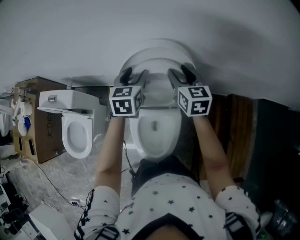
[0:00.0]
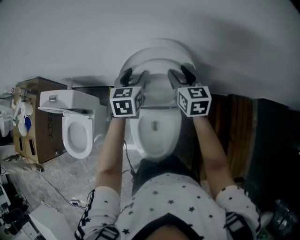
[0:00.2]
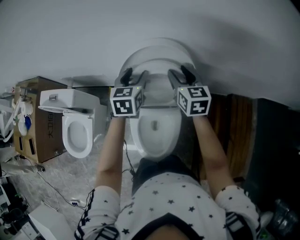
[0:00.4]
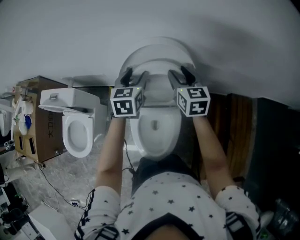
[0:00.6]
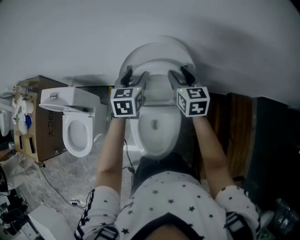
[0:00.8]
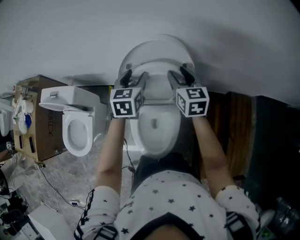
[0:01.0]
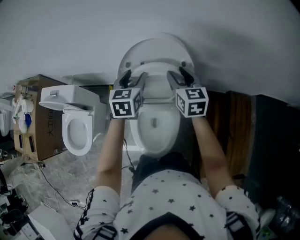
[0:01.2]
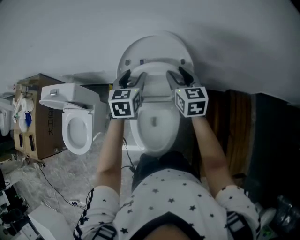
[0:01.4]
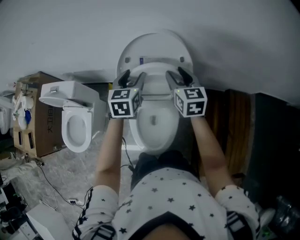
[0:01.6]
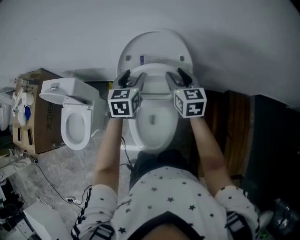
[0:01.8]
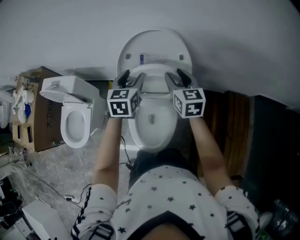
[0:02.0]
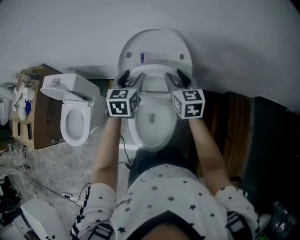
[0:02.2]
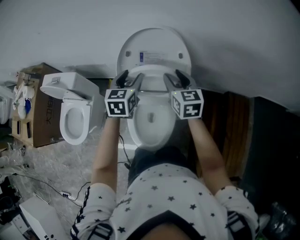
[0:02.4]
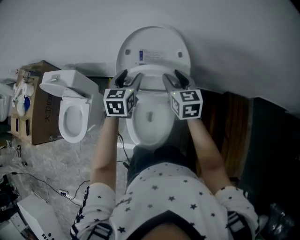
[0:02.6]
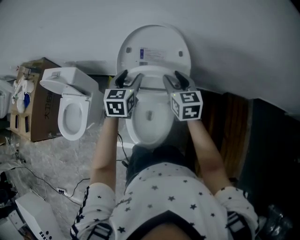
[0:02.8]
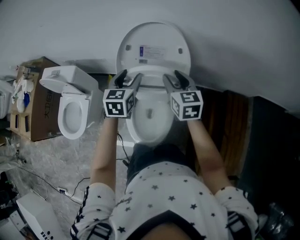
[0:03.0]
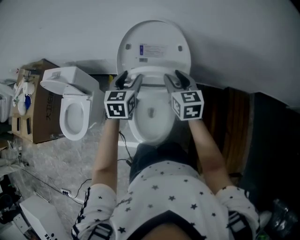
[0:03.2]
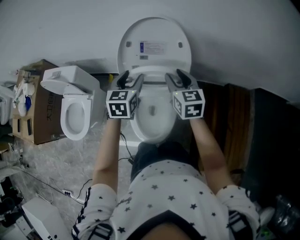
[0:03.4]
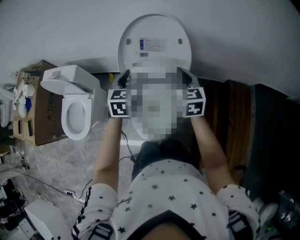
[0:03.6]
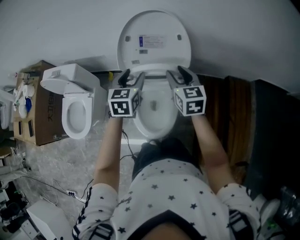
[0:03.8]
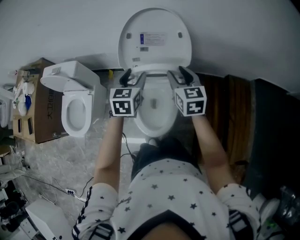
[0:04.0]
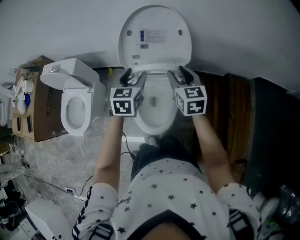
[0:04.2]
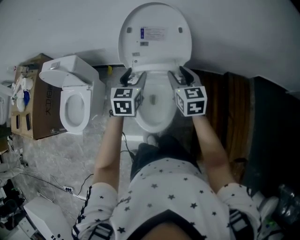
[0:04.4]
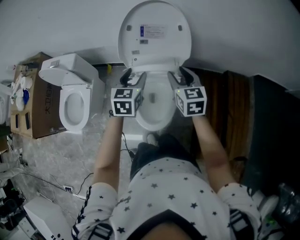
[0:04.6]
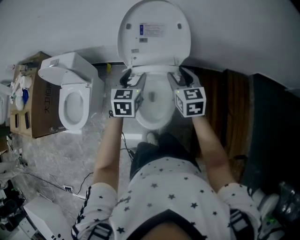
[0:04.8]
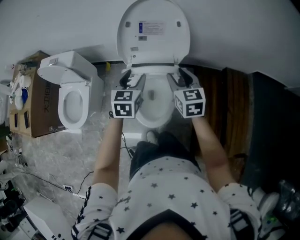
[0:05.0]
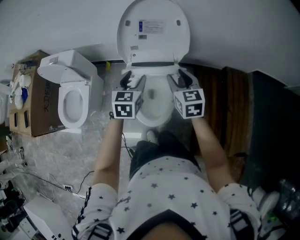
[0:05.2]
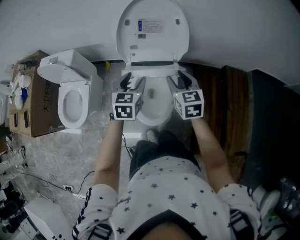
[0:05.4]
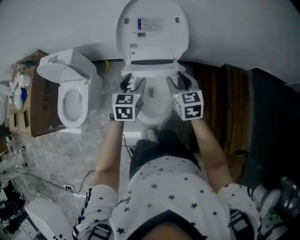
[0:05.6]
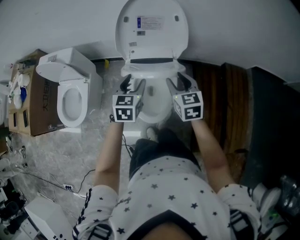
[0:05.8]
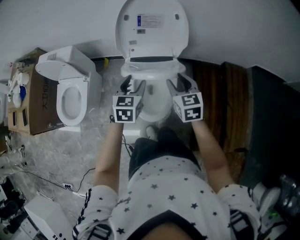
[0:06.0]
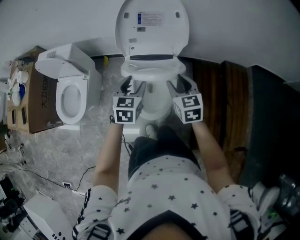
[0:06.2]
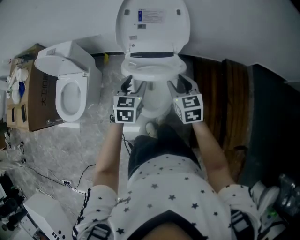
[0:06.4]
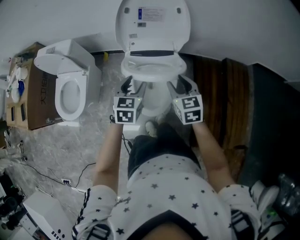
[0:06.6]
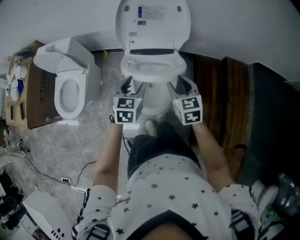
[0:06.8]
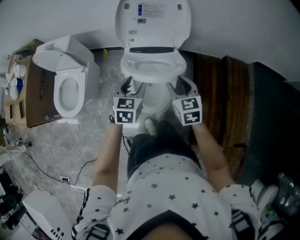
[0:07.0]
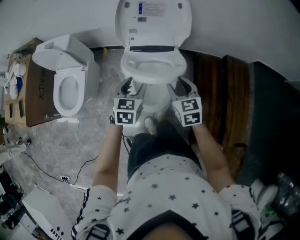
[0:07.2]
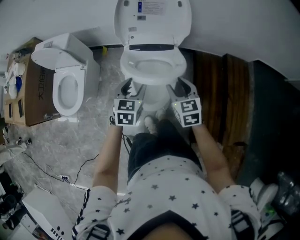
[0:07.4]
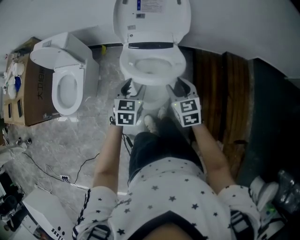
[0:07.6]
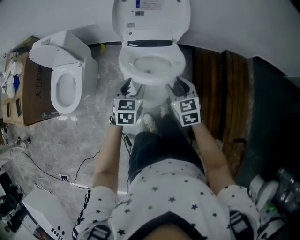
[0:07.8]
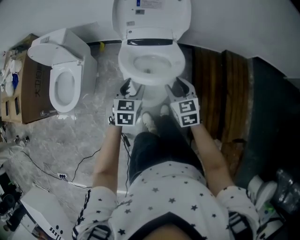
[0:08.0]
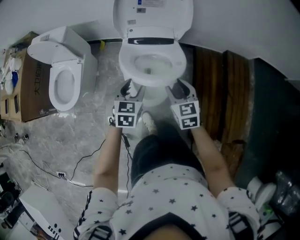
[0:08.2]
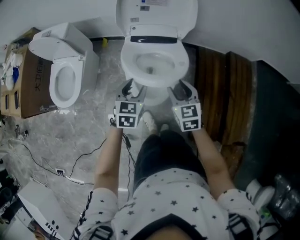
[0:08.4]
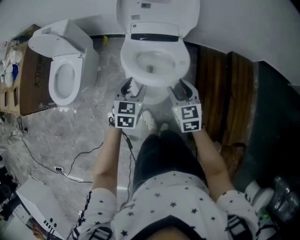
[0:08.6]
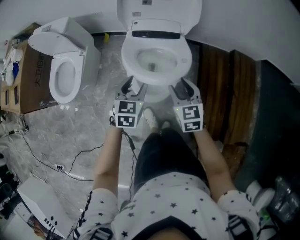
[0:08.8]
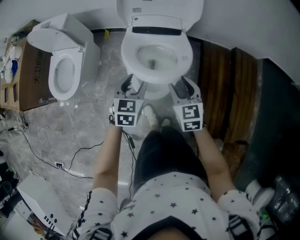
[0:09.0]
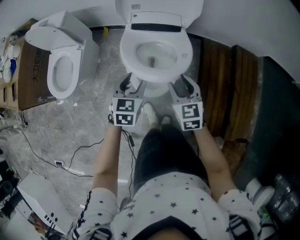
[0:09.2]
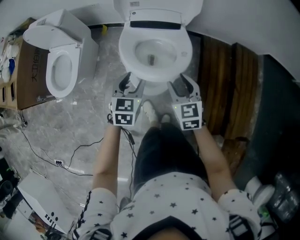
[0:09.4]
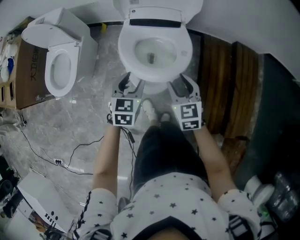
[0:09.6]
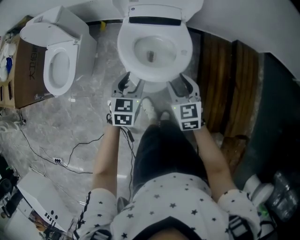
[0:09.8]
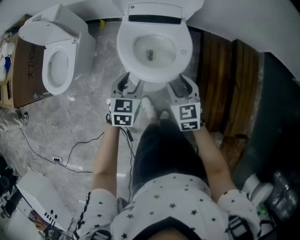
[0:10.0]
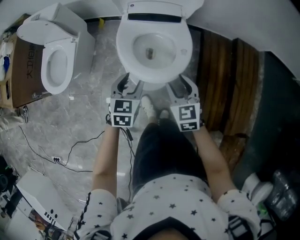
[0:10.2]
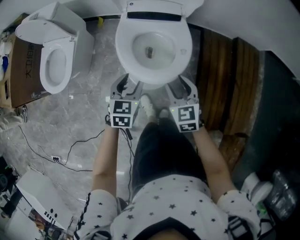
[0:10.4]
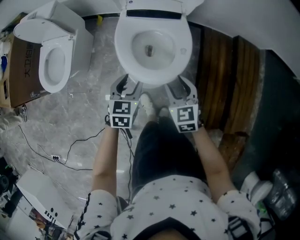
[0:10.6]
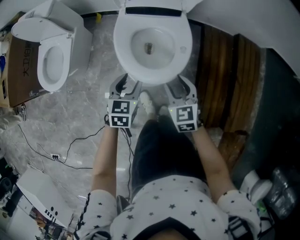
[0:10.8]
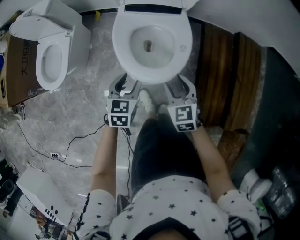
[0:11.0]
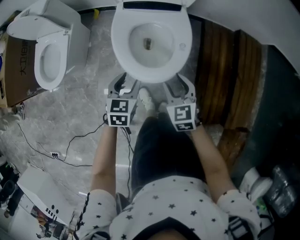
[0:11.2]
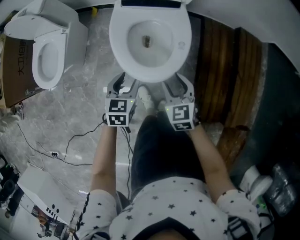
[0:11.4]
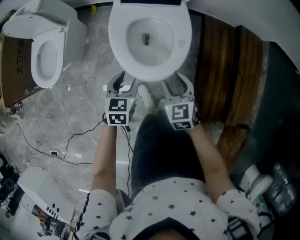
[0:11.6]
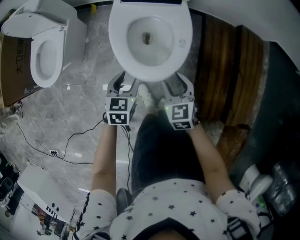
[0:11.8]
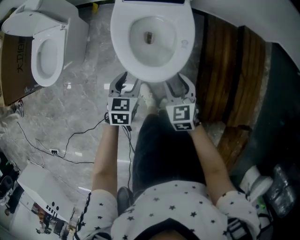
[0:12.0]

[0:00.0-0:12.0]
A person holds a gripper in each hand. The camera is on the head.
0:00.0 to 0:01.6: Both grippers travel together backward, about 10 cm.
0:01.6 to 0:03.0: The grippers both shift backward by approximately 5 cm.
0:03.0 to 0:04.4: Both grippers travel together backward, roughly 10 cm.
0:04.4 to 0:06.0: Both grippers travel together backward, approximately 10 cm.
0:06.0 to 0:07.6: Both grippers move backward and downward, roughly 10 cm.
0:07.6 to 0:09.0: The left gripper changes place by roughly 5 cm. The right gripper shifts by some 5 cm.
0:09.0 to 0:10.4: The grippers both shift downward by about 5 cm.
0:10.4 to 0:12.0: The two grippers go about 10 cm downward.

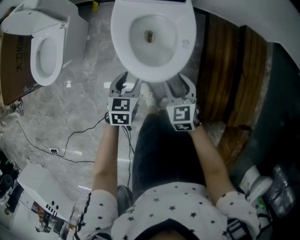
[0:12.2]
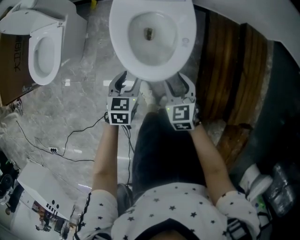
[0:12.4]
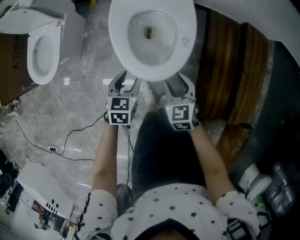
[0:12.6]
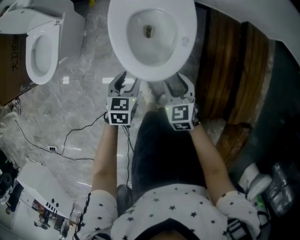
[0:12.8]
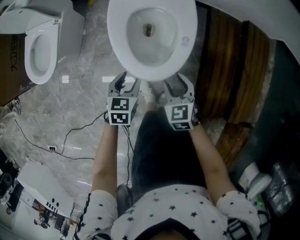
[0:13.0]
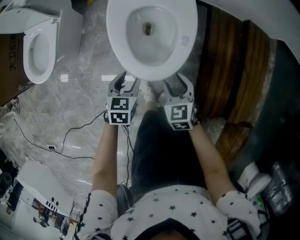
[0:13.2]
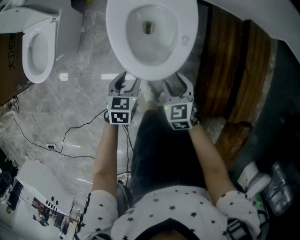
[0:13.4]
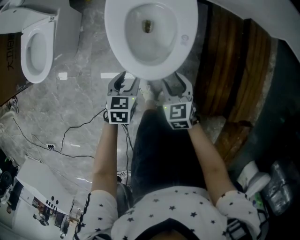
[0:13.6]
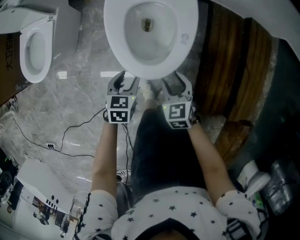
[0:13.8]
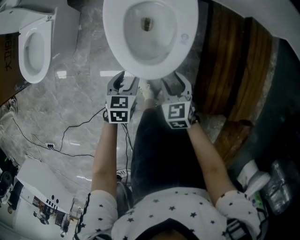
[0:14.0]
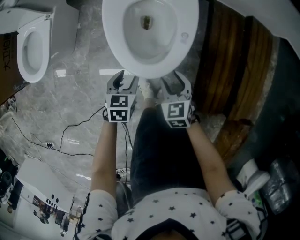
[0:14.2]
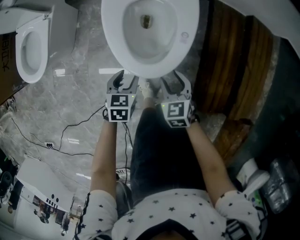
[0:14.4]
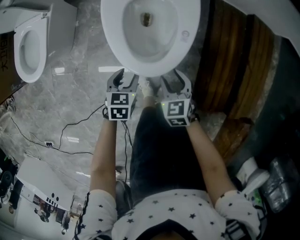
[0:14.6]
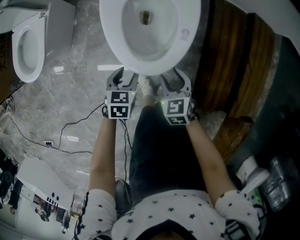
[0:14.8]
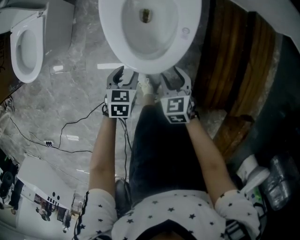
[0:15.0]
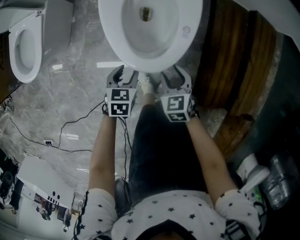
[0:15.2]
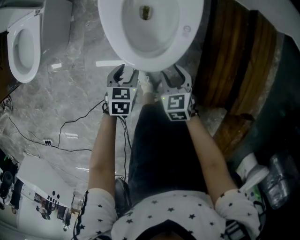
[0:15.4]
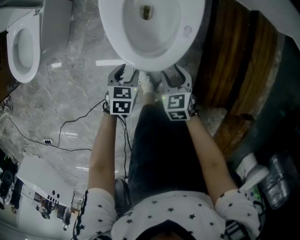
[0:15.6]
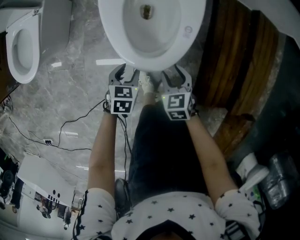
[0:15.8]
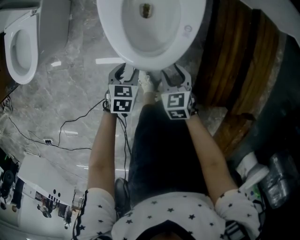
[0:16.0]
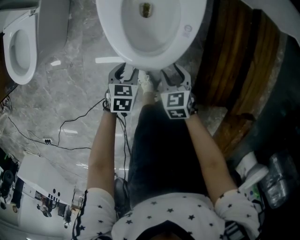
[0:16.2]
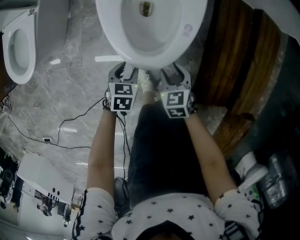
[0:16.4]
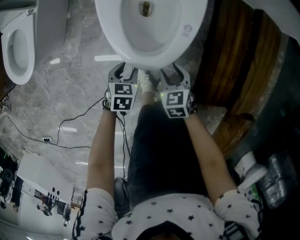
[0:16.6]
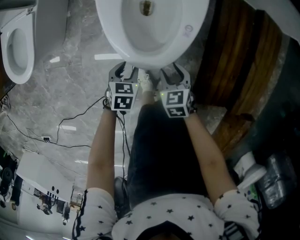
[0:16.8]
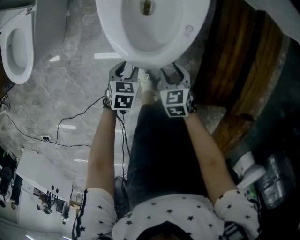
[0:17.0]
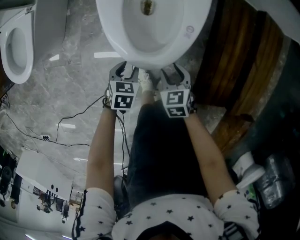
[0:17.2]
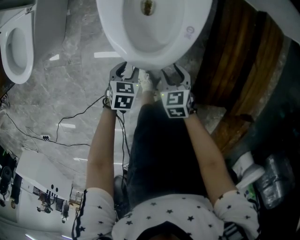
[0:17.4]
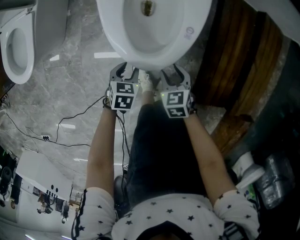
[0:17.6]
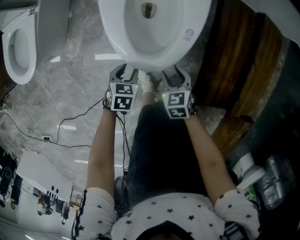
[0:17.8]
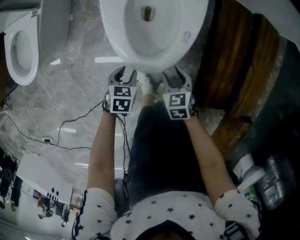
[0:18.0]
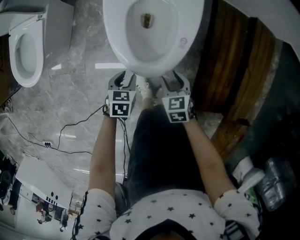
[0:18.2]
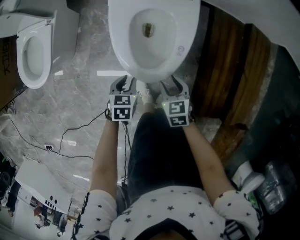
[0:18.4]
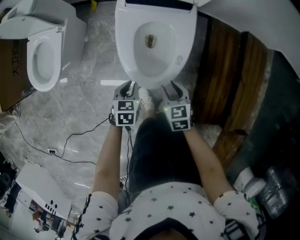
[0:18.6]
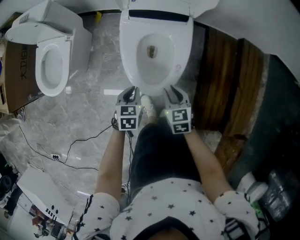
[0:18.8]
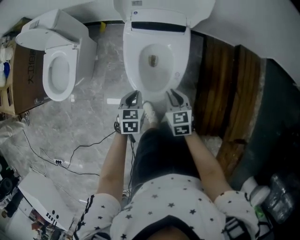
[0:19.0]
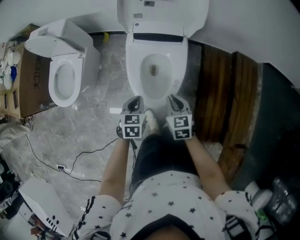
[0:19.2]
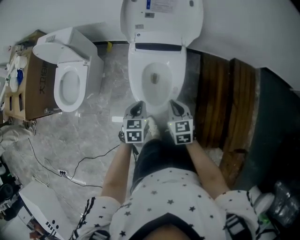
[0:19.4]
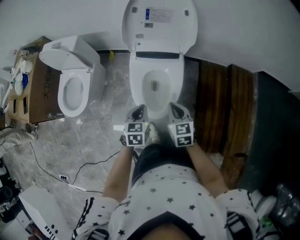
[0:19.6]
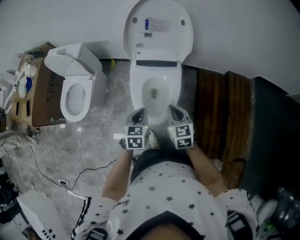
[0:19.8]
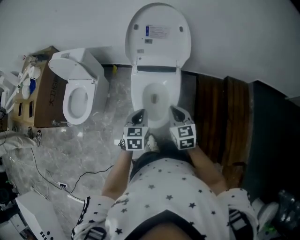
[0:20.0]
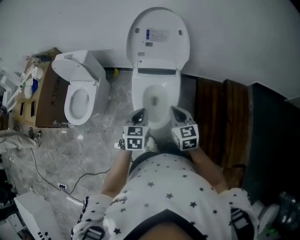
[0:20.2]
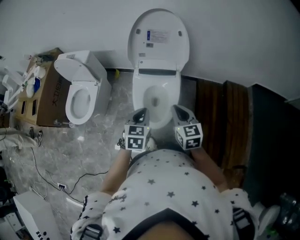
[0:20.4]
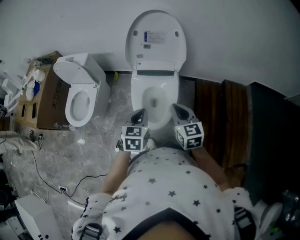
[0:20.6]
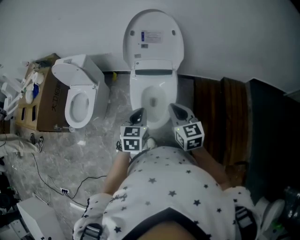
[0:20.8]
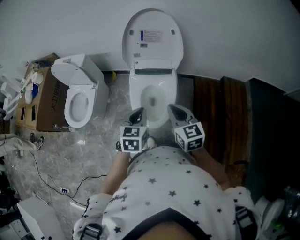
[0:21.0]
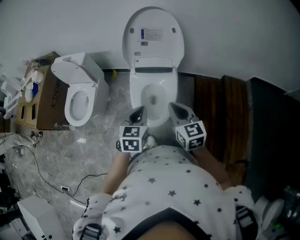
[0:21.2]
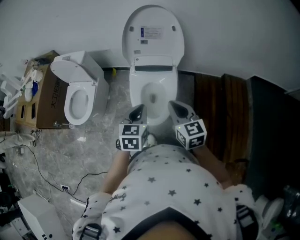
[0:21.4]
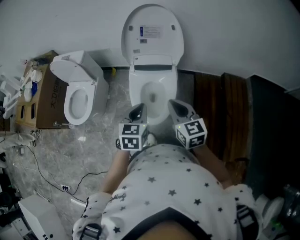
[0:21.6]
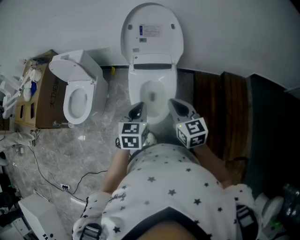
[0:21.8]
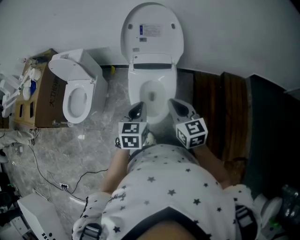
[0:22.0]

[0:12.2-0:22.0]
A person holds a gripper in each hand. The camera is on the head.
0:12.2 to 0:13.6: The grippers both shift downward by roughly 5 cm.
0:13.6 to 0:15.0: The grippers both shift downward by some 5 cm.
0:15.0 to 0:16.4: The grippers both shift downward by roughly 5 cm.
0:16.4 to 0:17.8: The grippers move only a little.
0:17.8 to 0:19.2: The grippers both shift upward by some 25 cm. The left gripper swivels about 20 degrees, and closes its fingers, while the right gripper closes up.
0:19.2 to 0:20.6: The two grippers go roughly 20 cm upward.
0:20.6 to 0:22.0: The grippers make only small movements.

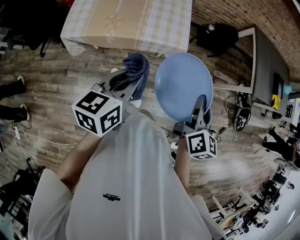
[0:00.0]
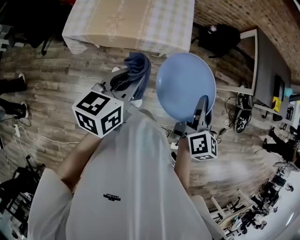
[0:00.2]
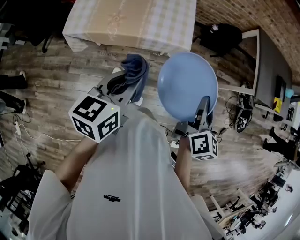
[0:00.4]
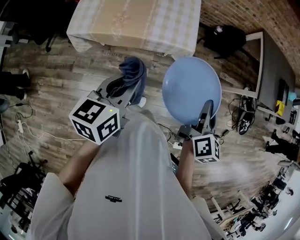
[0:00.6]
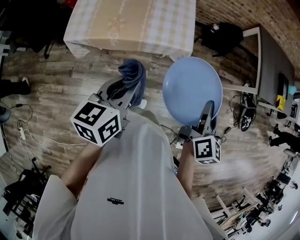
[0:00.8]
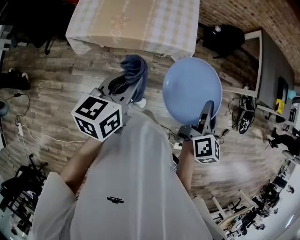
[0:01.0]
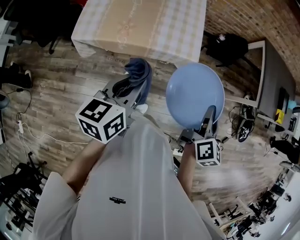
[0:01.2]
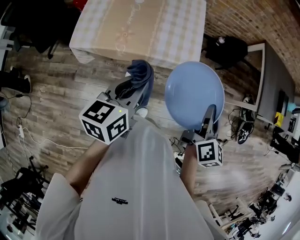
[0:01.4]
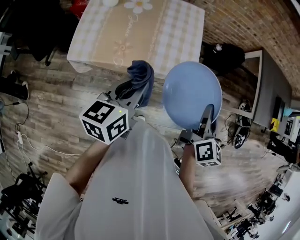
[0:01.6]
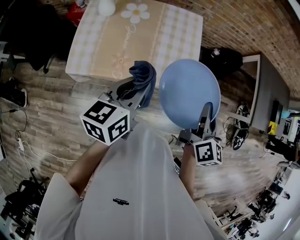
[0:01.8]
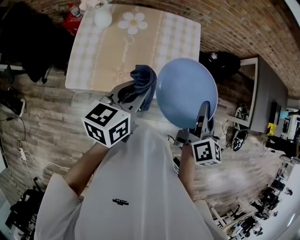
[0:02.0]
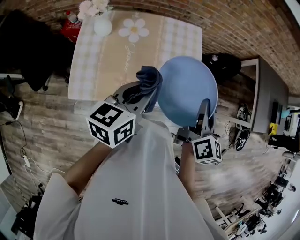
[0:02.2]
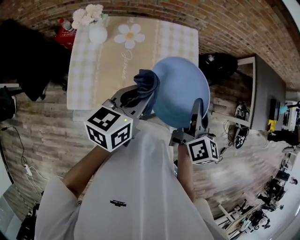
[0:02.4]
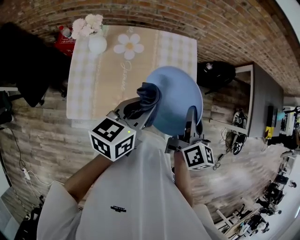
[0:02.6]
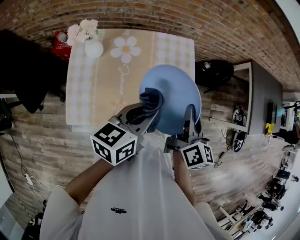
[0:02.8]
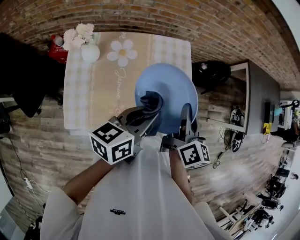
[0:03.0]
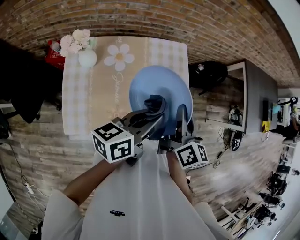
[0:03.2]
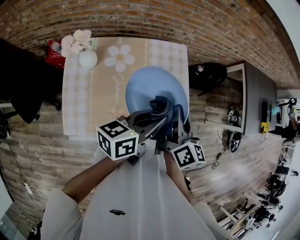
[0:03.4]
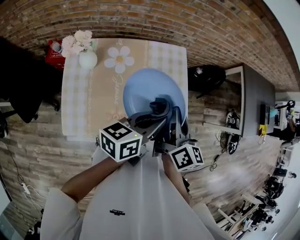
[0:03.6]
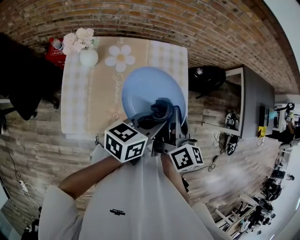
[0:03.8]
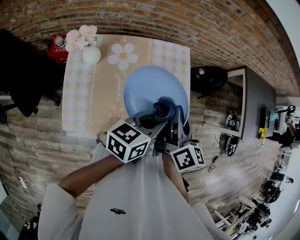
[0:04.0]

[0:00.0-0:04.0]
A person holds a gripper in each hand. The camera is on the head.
0:00.0 to 0:01.4: The left gripper moves to the left and forward, approximately 10 cm; the right gripper goes approximately 10 cm forward and to the left.
0:01.4 to 0:02.6: The right gripper travels to the left and forward by some 40 cm; the left gripper is displaced forward and to the left by about 35 cm.
0:02.6 to 0:04.0: The left gripper changes place by approximately 5 cm. The right gripper moves to the left, some 5 cm.
